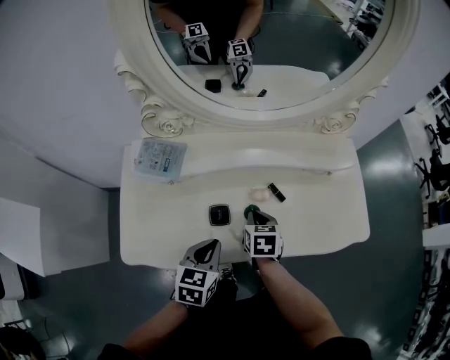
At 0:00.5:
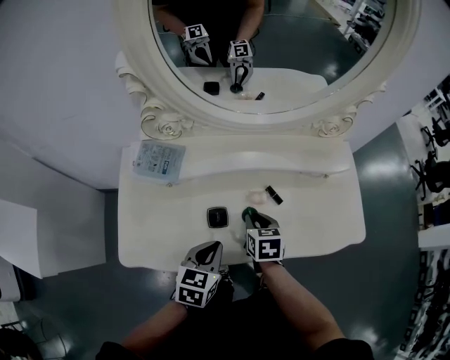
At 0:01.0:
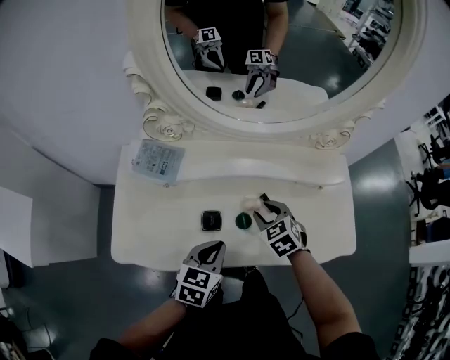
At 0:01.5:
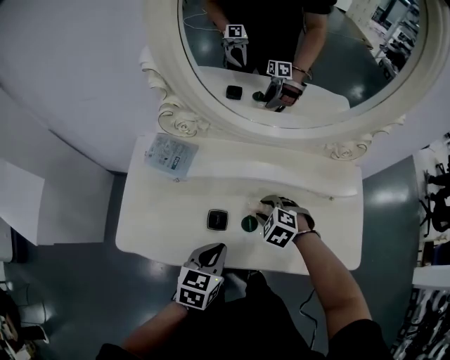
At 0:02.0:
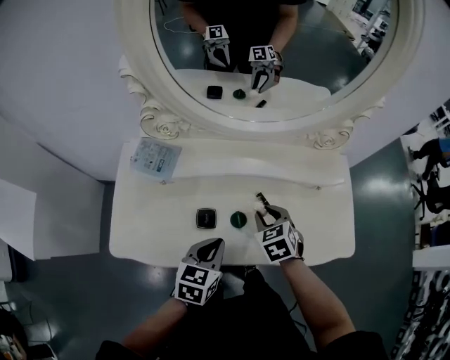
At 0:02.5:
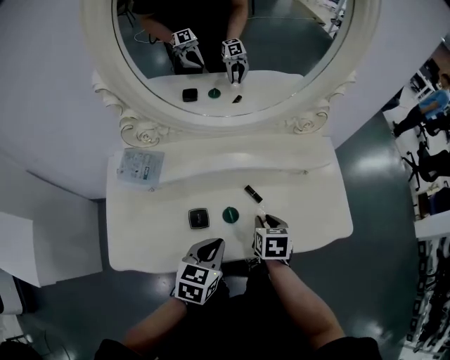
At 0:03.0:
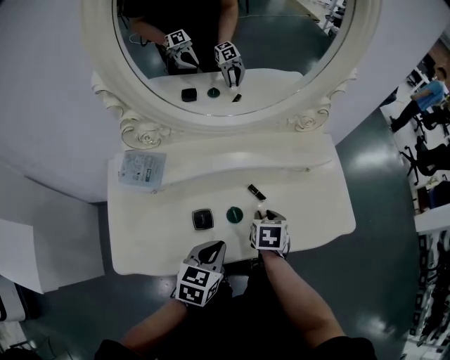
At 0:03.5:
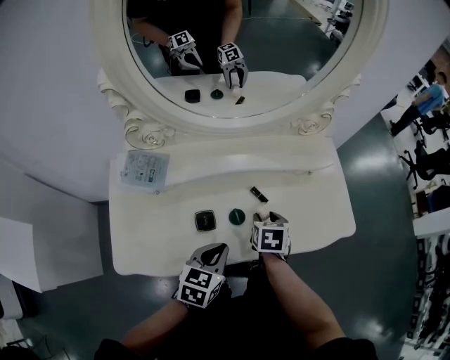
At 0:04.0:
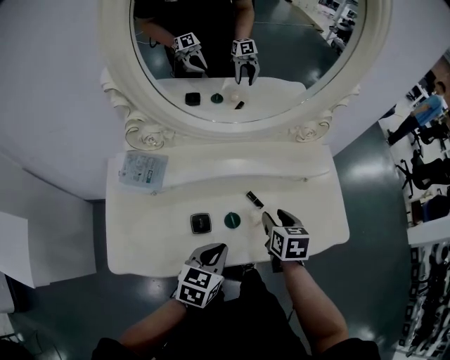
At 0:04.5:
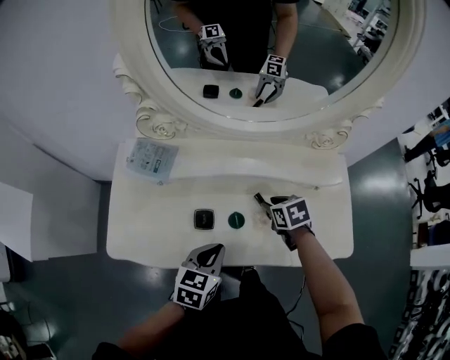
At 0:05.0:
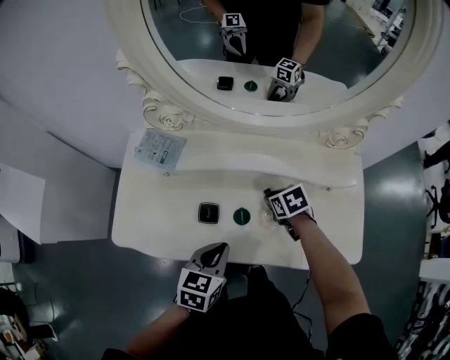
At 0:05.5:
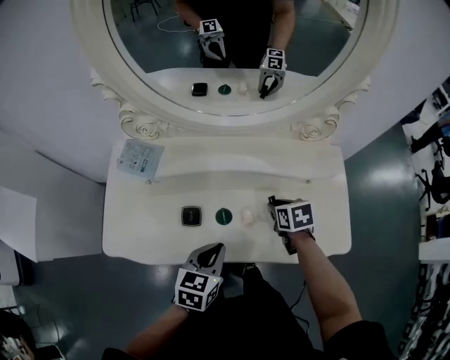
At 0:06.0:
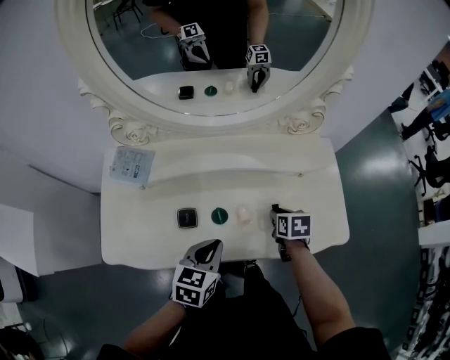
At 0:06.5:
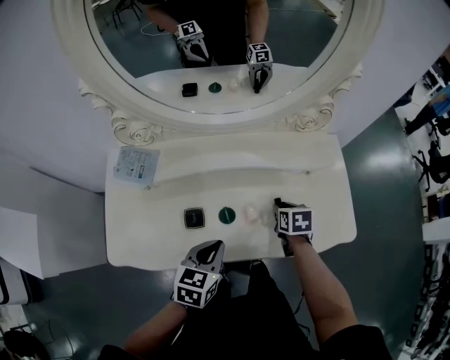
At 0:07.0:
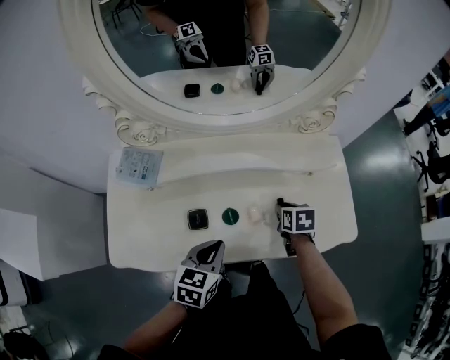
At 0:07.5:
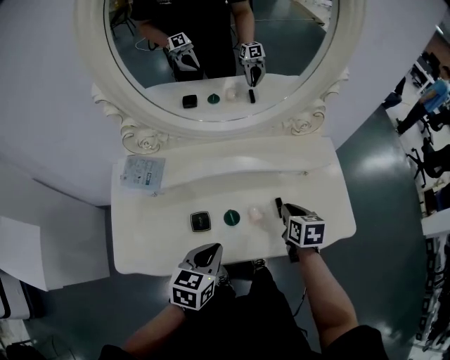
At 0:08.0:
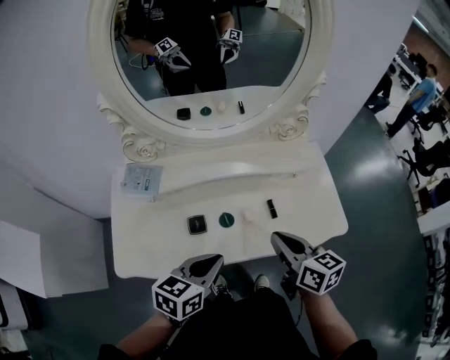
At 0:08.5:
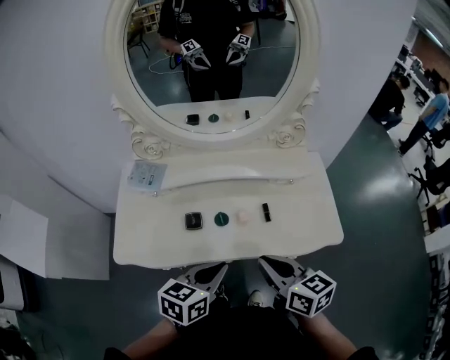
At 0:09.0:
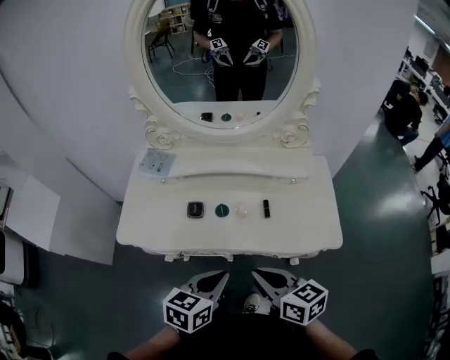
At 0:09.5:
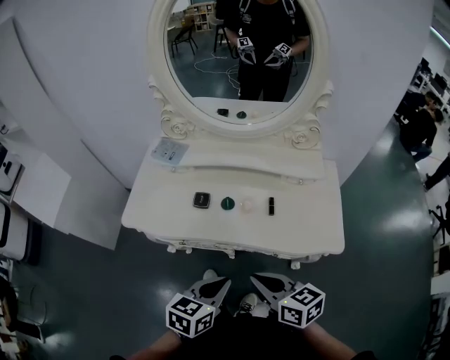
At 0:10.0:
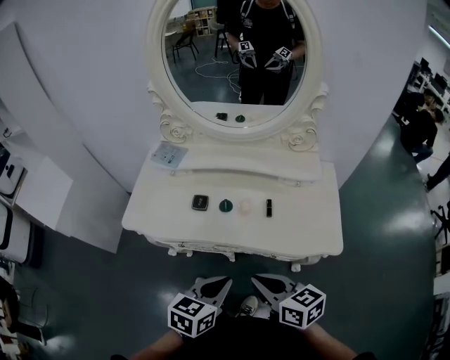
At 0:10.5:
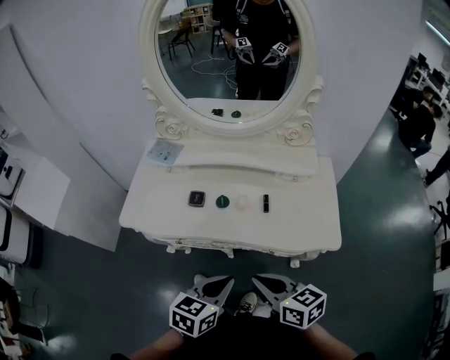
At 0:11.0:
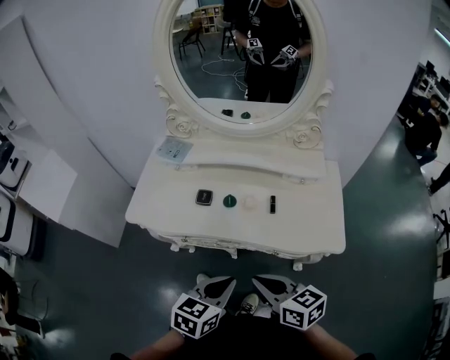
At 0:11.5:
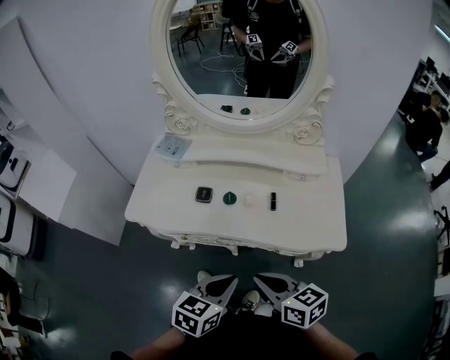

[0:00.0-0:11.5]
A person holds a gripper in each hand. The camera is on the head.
0:00.0 to 0:02.0: The left gripper moves to the right, about 5 cm. The right gripper shifts roughly 5 cm upward, swivels about 30 degrees, and opens its fingers.
0:02.0 to 0:04.0: The right gripper heads to the right, covering roughly 5 cm, turns by some 40 degrees, and opens.
0:04.0 to 0:06.0: The right gripper heads downward, covering some 10 cm, and closes.
0:06.0 to 0:07.5: The right gripper travels upward by approximately 5 cm, while the left gripper shifts by approximately 5 cm.
0:07.5 to 0:09.5: The right gripper moves some 30 cm, and rotates about 50 degrees. The left gripper ends up some 25 cm from where it was.
0:09.5 to 0:11.5: The grippers make only small movements.

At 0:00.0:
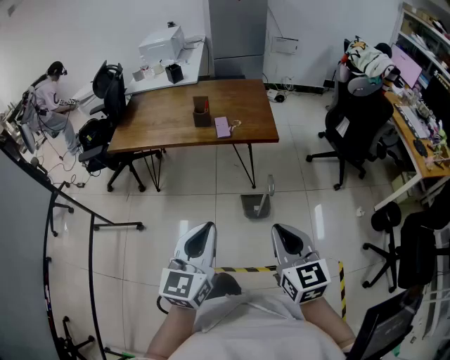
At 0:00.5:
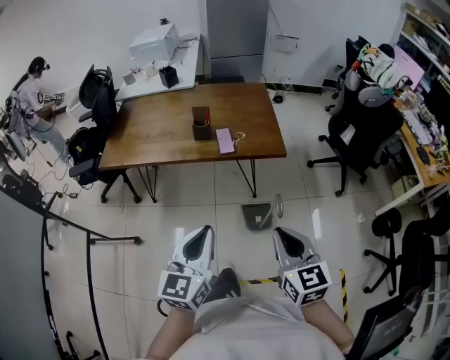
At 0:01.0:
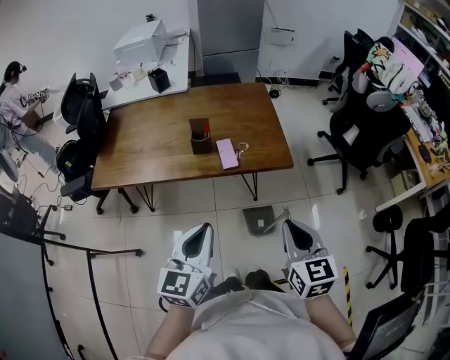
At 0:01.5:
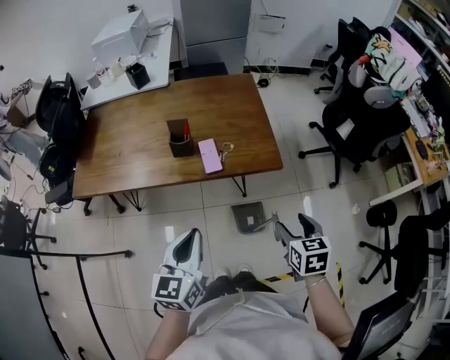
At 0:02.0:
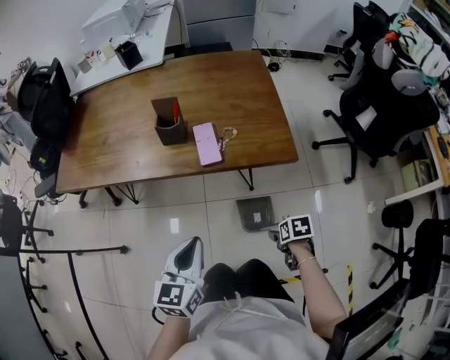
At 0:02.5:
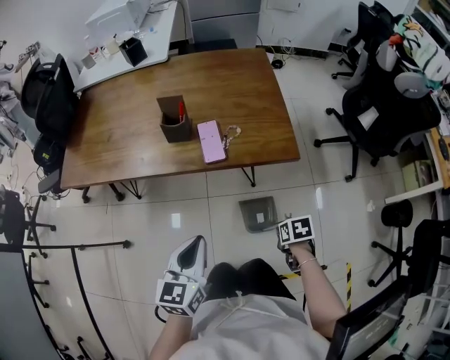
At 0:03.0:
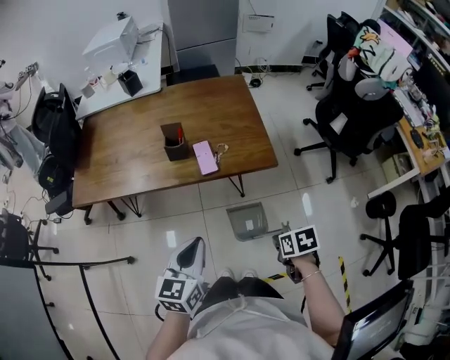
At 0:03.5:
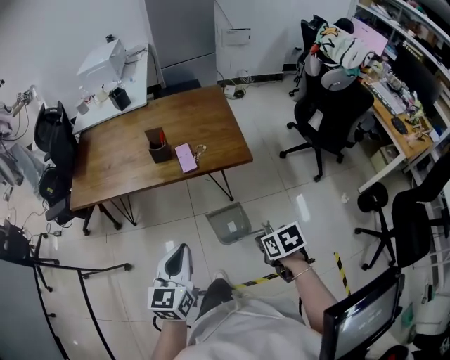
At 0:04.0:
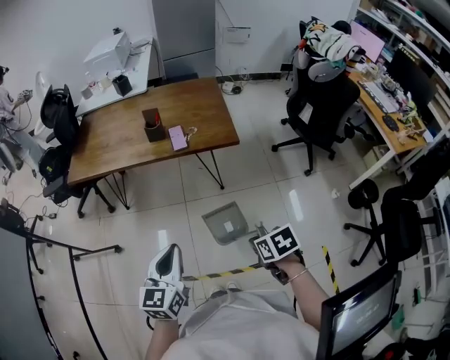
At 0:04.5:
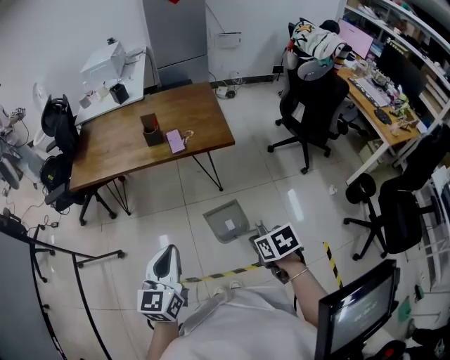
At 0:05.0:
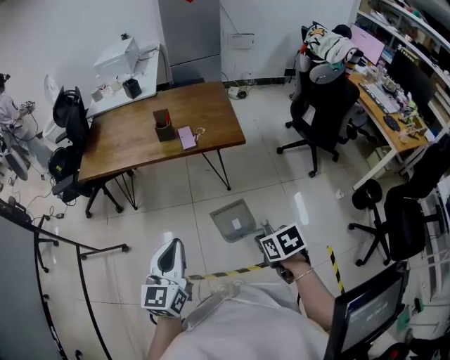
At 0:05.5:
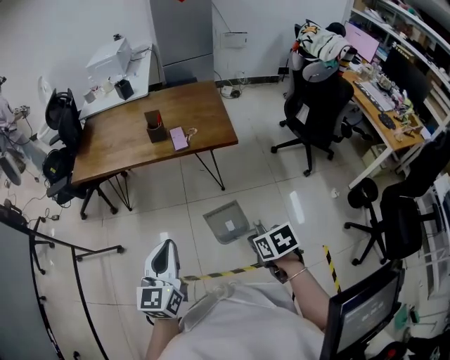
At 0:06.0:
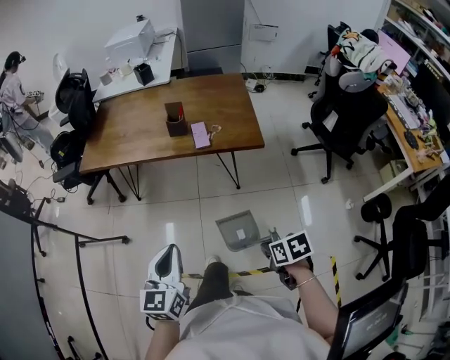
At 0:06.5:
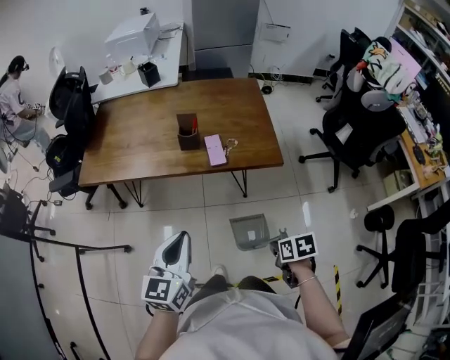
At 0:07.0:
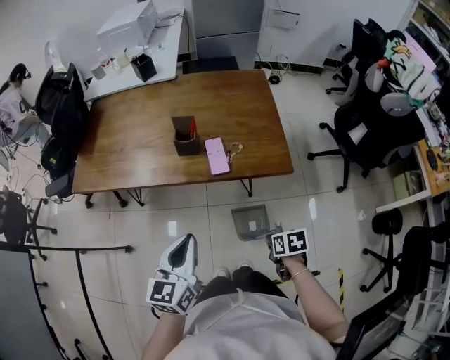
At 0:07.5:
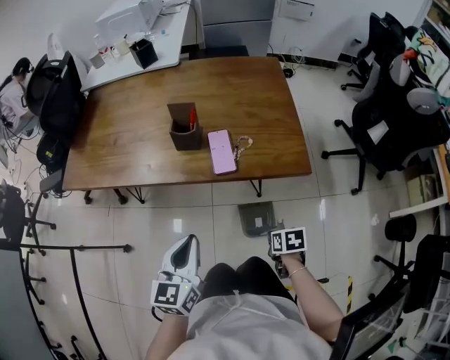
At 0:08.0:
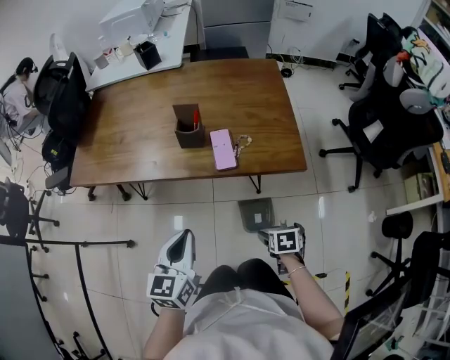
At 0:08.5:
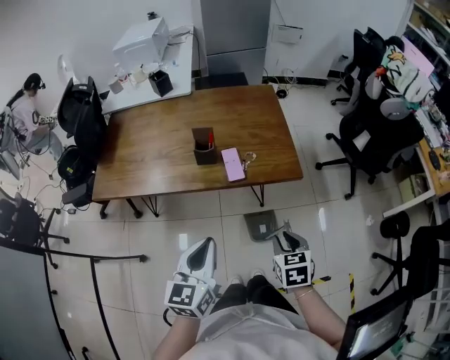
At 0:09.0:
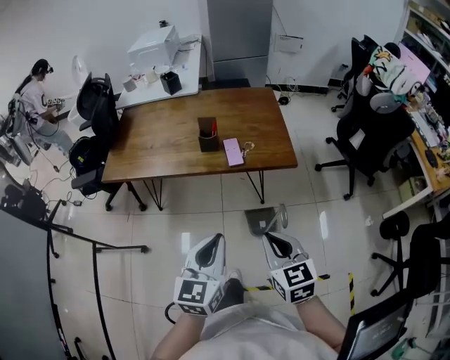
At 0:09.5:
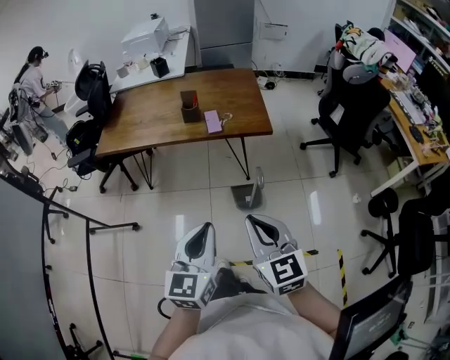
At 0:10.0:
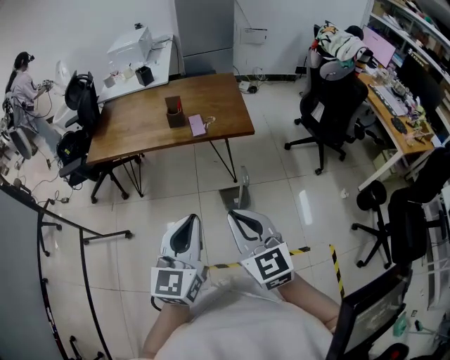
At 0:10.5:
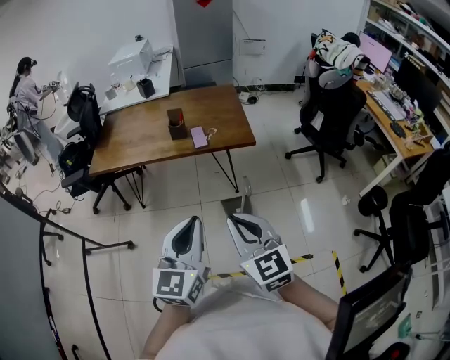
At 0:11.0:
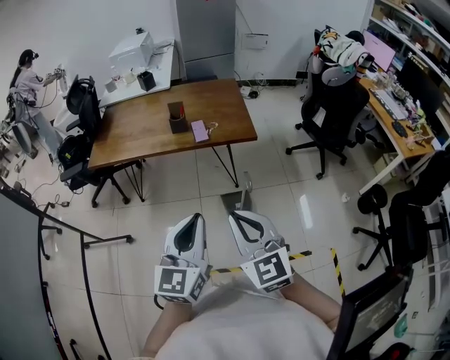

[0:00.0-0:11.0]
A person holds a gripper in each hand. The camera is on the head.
0:00.0 to 0:02.0: The left gripper shifts by roughly 40 cm, while the right gripper travels downward by some 40 cm, tips its fingers downward by approximately 60 degrees, and opens its fingers.
0:02.0 to 0:03.5: The right gripper goes approximately 25 cm upward, and closes its fingers, while the left gripper moves upward, about 15 cm.
0:03.5 to 0:05.5: The two grippers go roughly 15 cm backward.
0:05.5 to 0:07.5: The grippers both shift forward and downward by approximately 40 cm.
0:07.5 to 0:09.0: The left gripper goes some 25 cm upward and backward; the right gripper shifts roughly 40 cm upward and backward, tips its fingers upward by about 40 degrees, and opens, then closes once more.
0:09.0 to 0:11.0: The grippers both shift backward and upward by some 20 cm. The right gripper swivels about 20 degrees.

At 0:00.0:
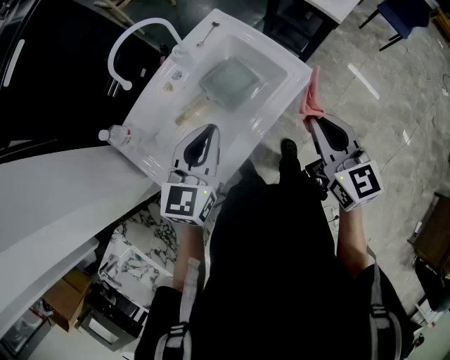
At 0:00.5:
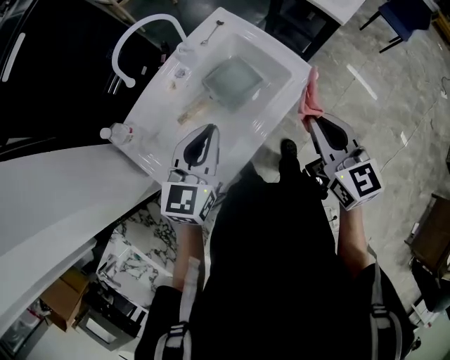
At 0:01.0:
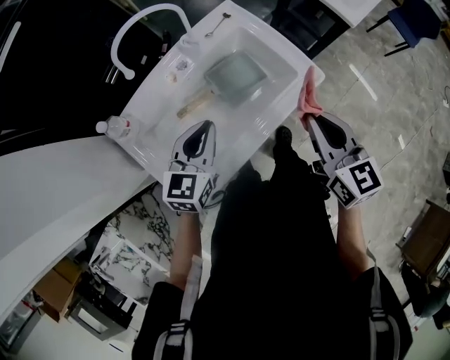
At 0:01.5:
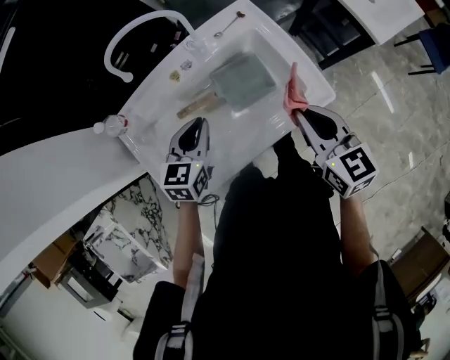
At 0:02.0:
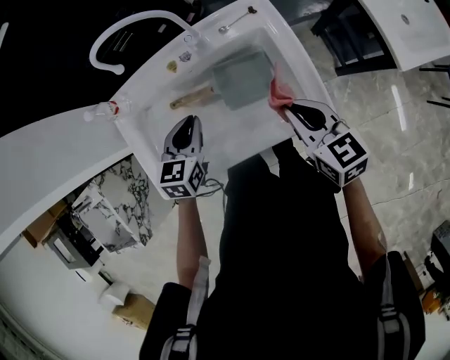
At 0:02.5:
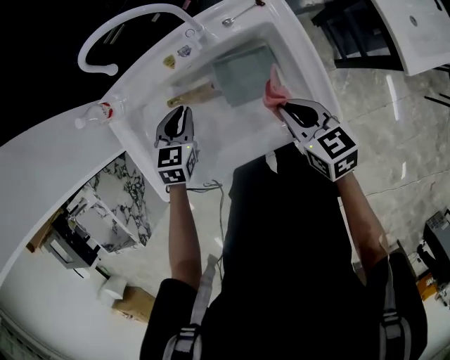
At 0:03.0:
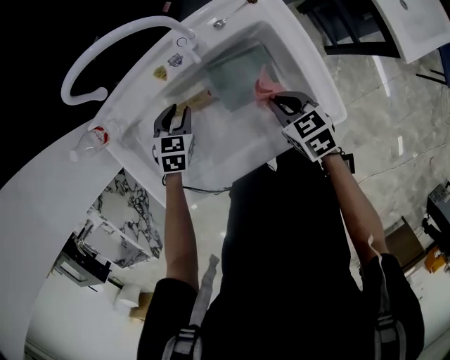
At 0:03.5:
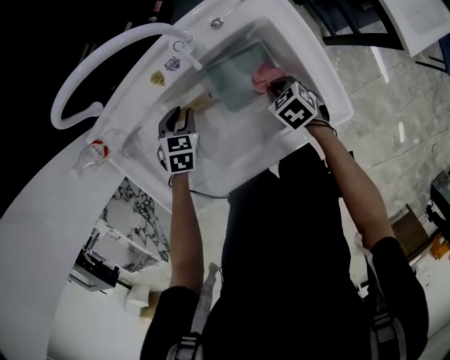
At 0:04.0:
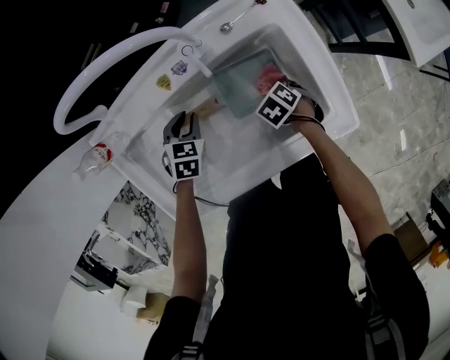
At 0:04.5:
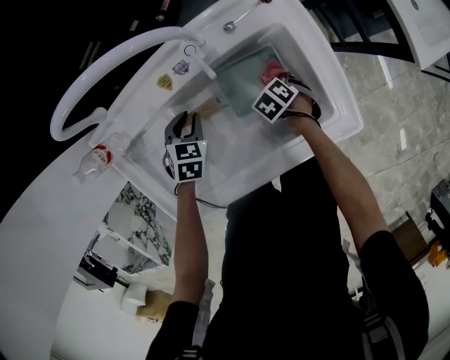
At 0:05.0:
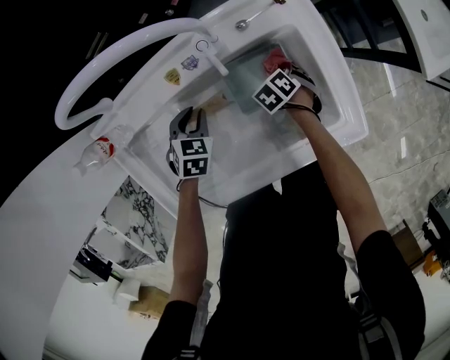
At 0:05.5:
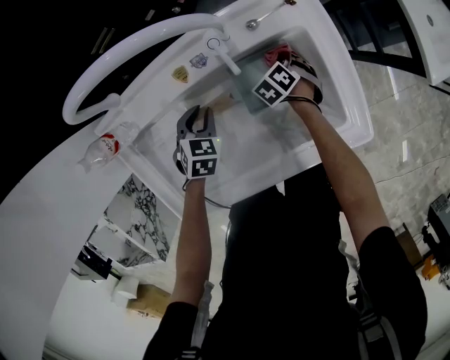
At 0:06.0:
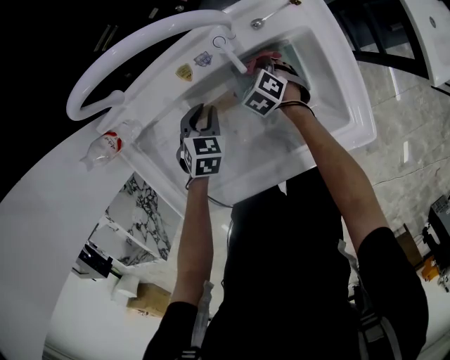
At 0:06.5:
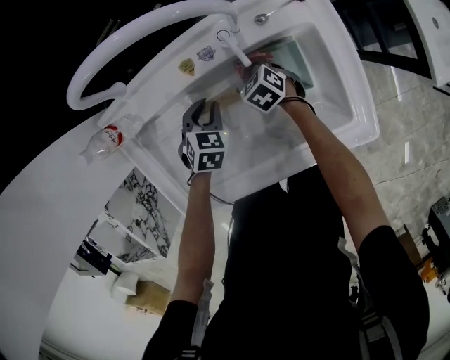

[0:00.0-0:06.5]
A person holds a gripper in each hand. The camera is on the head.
0:00.0 to 0:02.0: The left gripper travels downward by roughly 15 cm, and turns by roughly 40 degrees. Meanwhile the right gripper ends up some 20 cm from where it was, and changes its angle by approximately 40 degrees.
0:02.0 to 0:04.5: The right gripper heads downward, covering approximately 35 cm, and tilts its fingers roughly 60 degrees downward. Meanwhile the left gripper shifts roughly 20 cm downward, and swivels about 30 degrees.
0:04.5 to 0:06.5: The right gripper changes place by some 15 cm, and swivels approximately 30 degrees.
